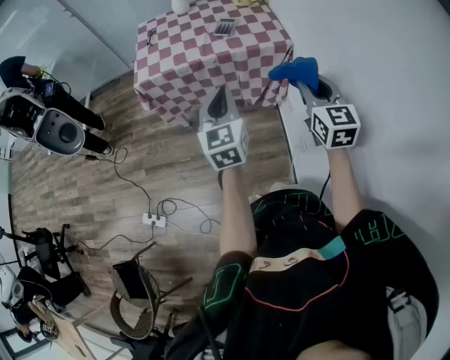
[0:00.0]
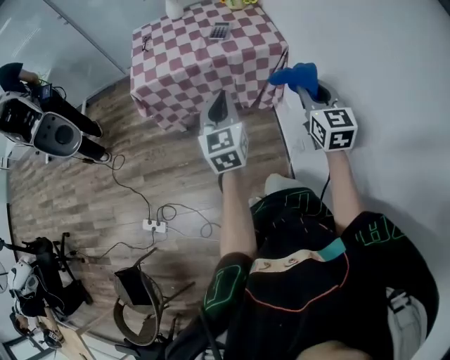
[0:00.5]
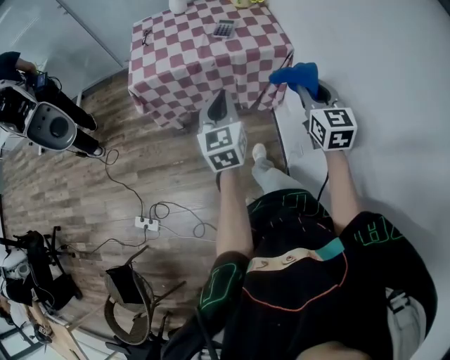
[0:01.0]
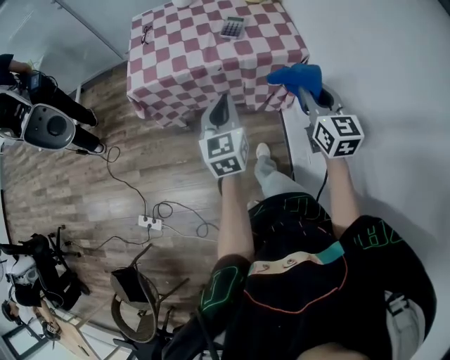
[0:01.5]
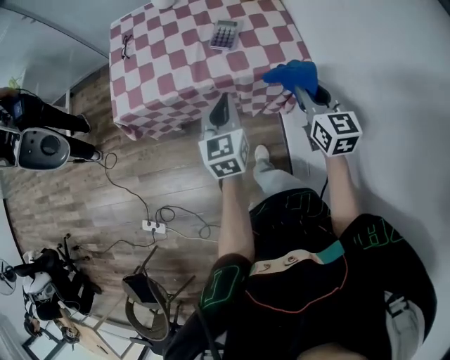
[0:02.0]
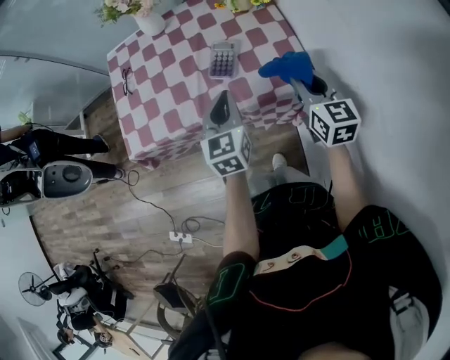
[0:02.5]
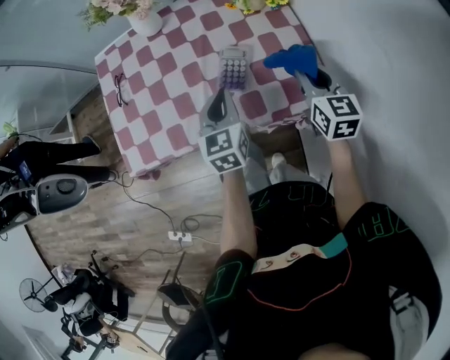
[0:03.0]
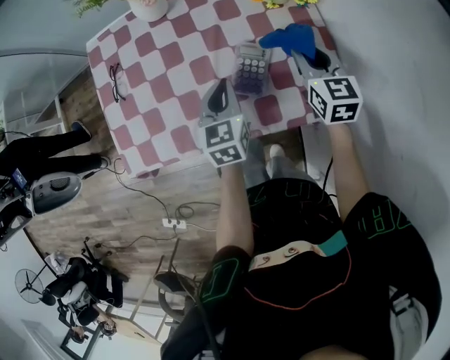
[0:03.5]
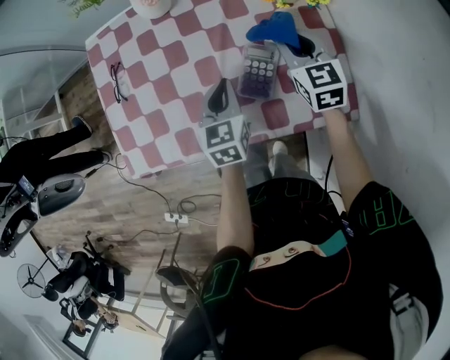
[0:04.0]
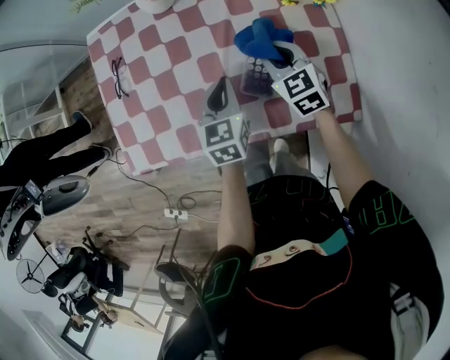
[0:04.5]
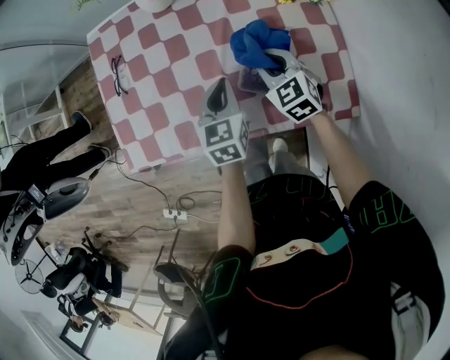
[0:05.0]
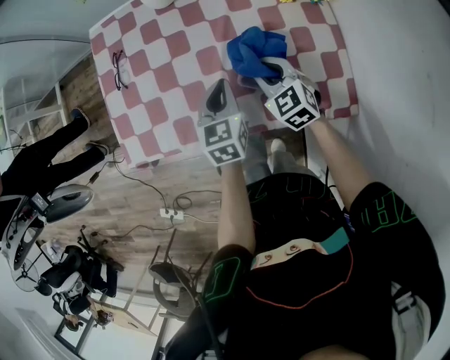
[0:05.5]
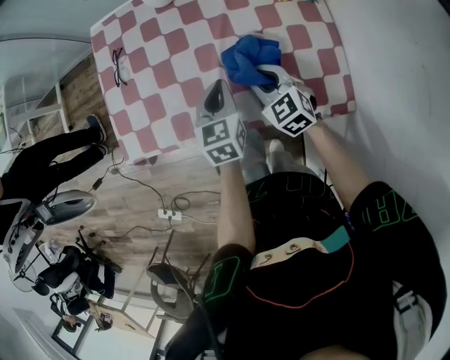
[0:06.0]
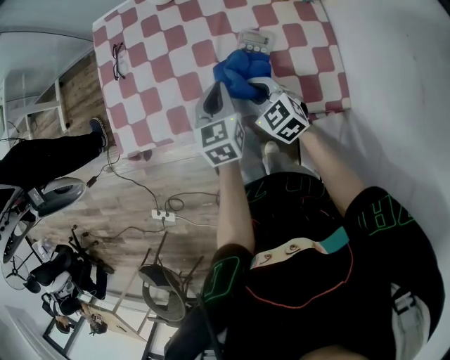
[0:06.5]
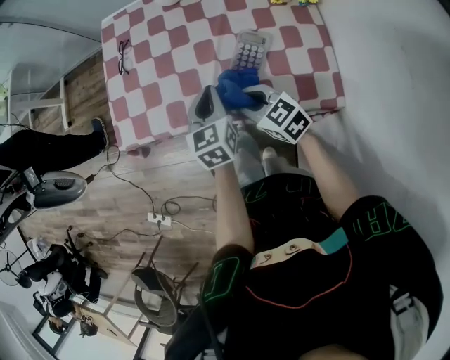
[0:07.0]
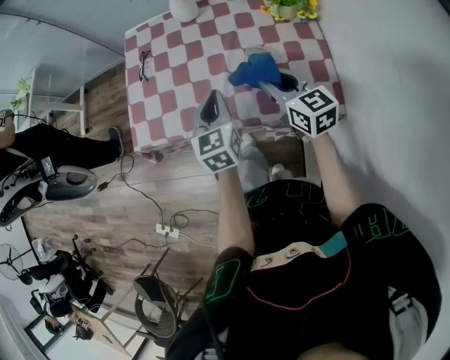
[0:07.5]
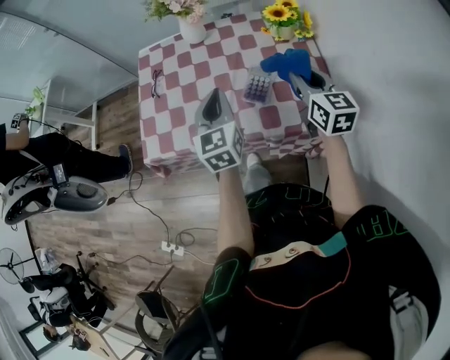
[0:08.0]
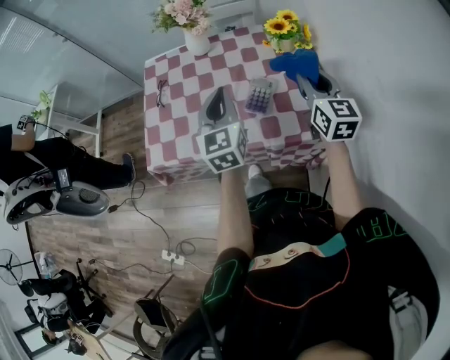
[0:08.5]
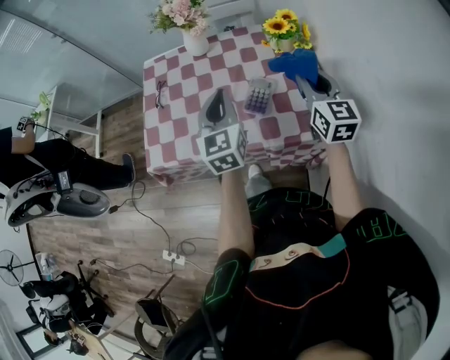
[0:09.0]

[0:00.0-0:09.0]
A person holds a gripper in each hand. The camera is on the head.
0:00.0 to 0:02.0: The two grippers go about 25 cm forward.
0:02.0 to 0:04.5: Both grippers move forward, approximately 30 cm. The right gripper swivels some 30 degrees.
0:04.5 to 0:07.0: The right gripper heads backward and to the left, covering roughly 20 cm, and rotates approximately 30 degrees, while the left gripper shifts about 10 cm backward and to the left.
0:07.0 to 0:09.0: The grippers both shift upward by approximately 15 cm. The right gripper rotates roughly 50 degrees. The left gripper swivels roughly 20 degrees.

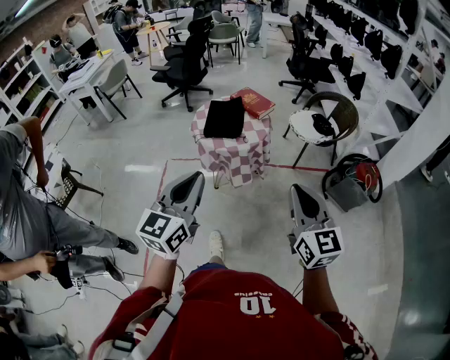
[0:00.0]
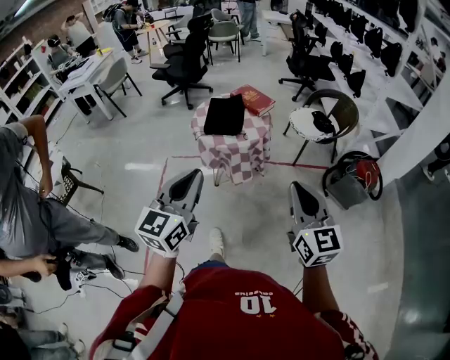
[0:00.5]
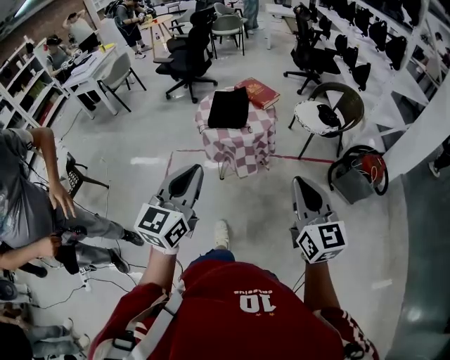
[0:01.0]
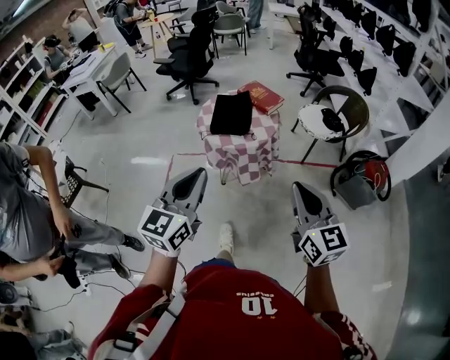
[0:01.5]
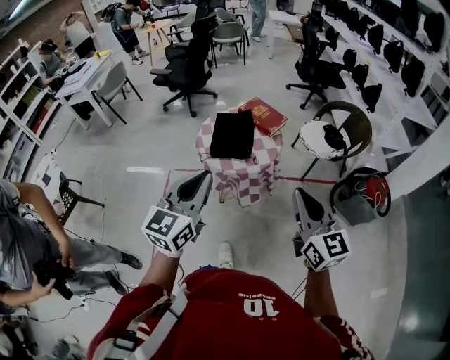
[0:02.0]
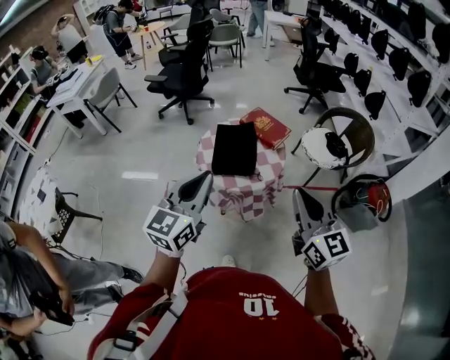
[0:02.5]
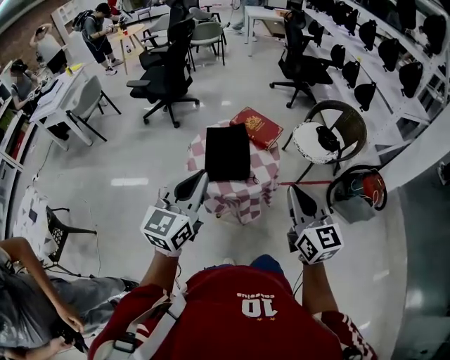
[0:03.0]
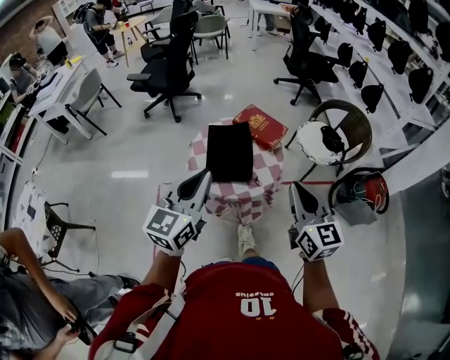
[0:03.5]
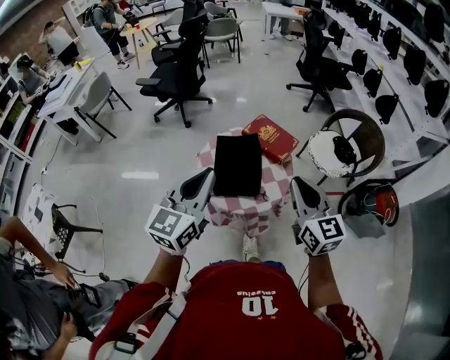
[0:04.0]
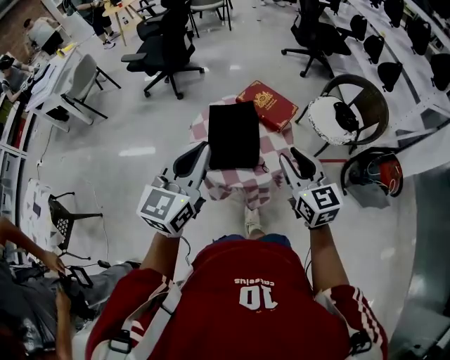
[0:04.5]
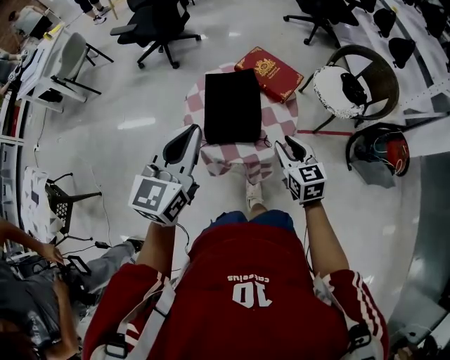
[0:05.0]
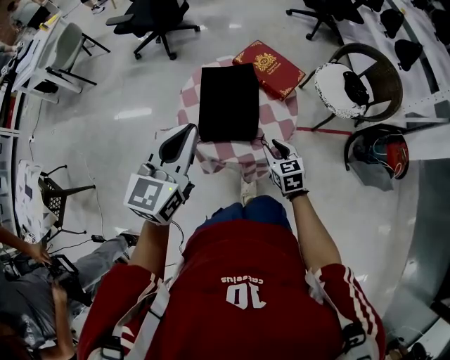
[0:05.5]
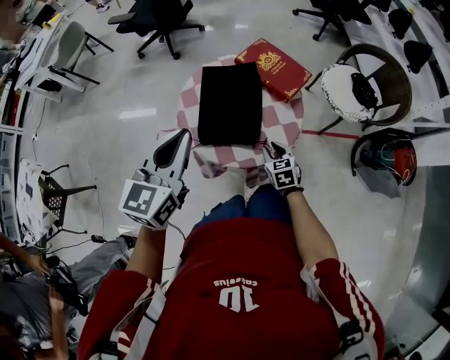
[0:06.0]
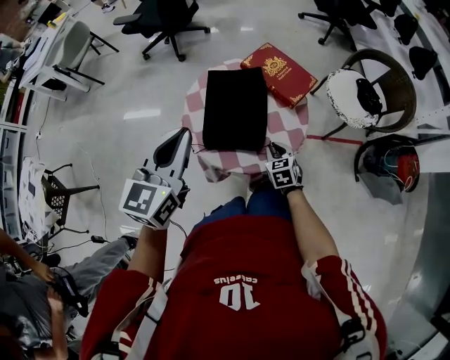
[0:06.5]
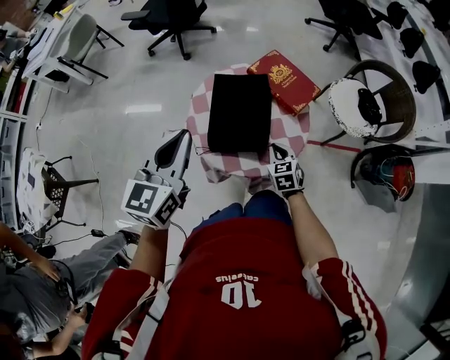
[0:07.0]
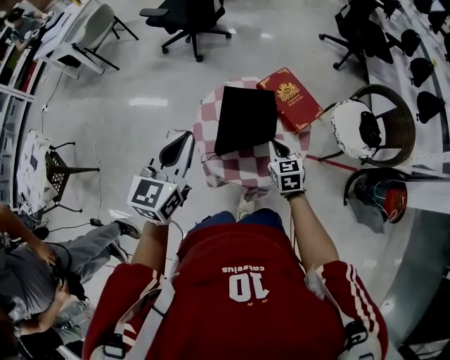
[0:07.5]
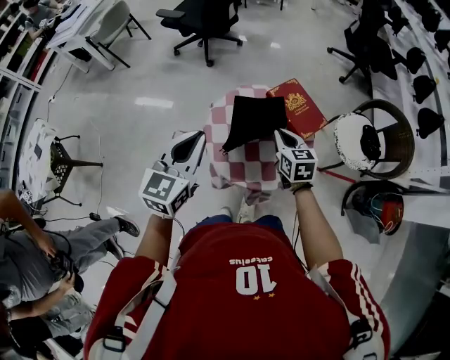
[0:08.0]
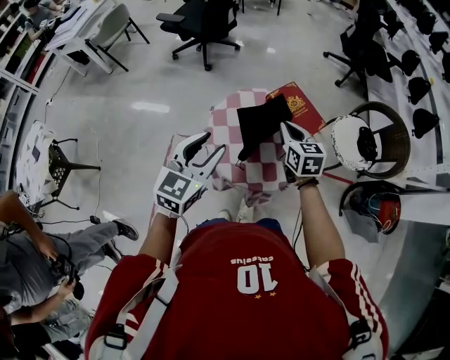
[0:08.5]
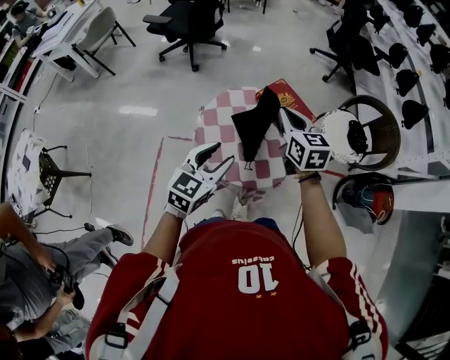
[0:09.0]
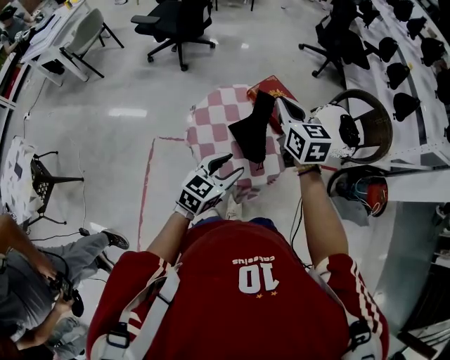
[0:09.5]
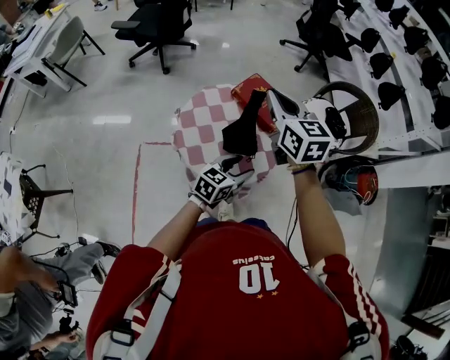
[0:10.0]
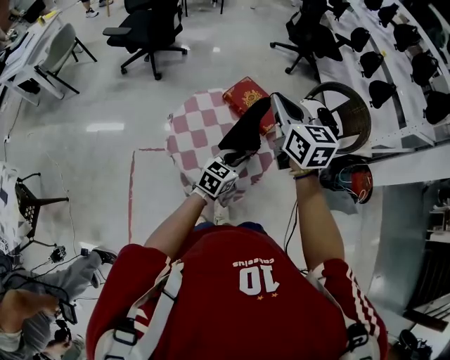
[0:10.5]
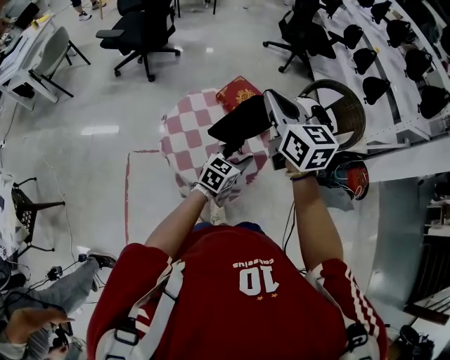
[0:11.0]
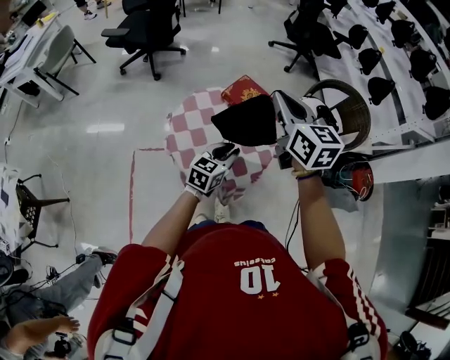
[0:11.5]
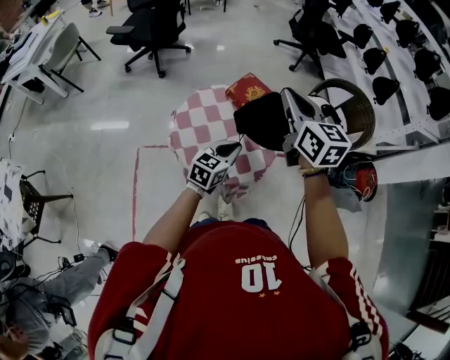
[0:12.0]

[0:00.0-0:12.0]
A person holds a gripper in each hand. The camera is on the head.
0:00.0 to 0:02.0: Both grippers move forward, approximately 15 cm.
0:02.0 to 0:04.0: The two grippers go some 25 cm forward.
0:04.0 to 0:06.0: The left gripper goes approximately 15 cm downward and forward, while the right gripper is displaced downward by some 40 cm, angles its fingers downward, by roughly 40 degrees, and opens up.
0:06.0 to 0:08.0: The left gripper heads upward, covering some 5 cm, while the right gripper shifts about 25 cm upward and forward, and closes up.
0:08.0 to 0:10.0: The right gripper shifts approximately 20 cm upward, while the left gripper goes approximately 25 cm downward and to the right, rotates roughly 40 degrees, and opens up.
0:10.0 to 0:12.0: The right gripper moves to the right, approximately 5 cm. Meanwhile the left gripper changes place by roughly 5 cm, and closes up.

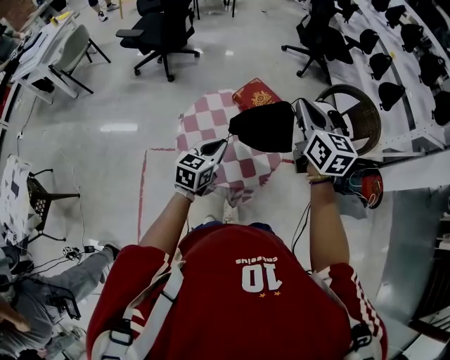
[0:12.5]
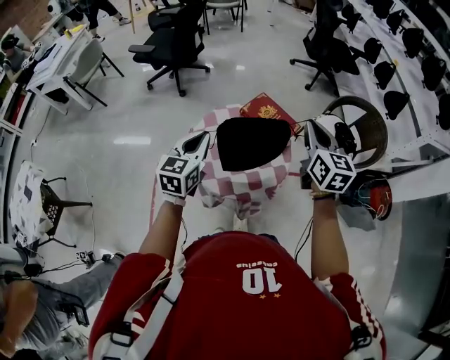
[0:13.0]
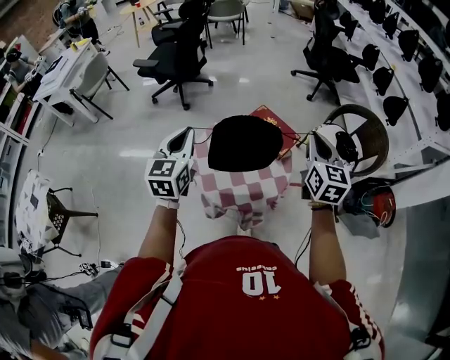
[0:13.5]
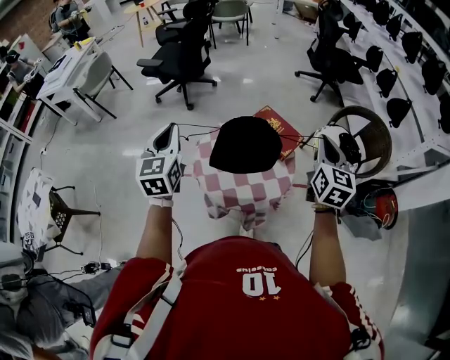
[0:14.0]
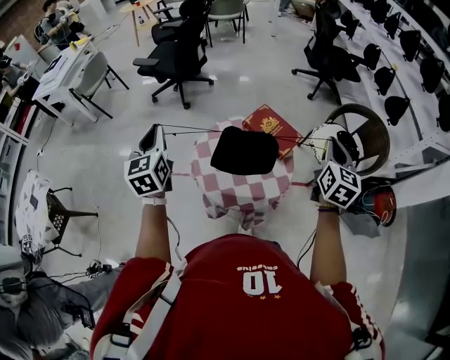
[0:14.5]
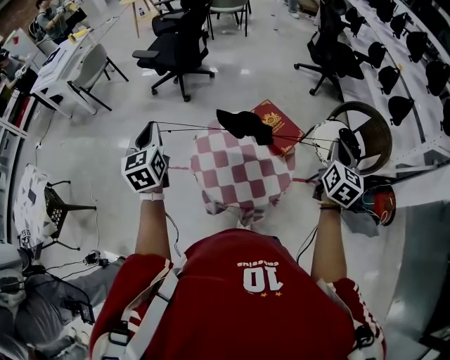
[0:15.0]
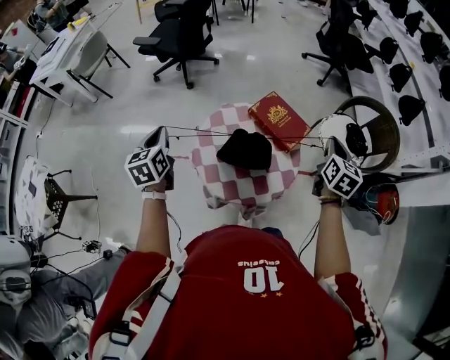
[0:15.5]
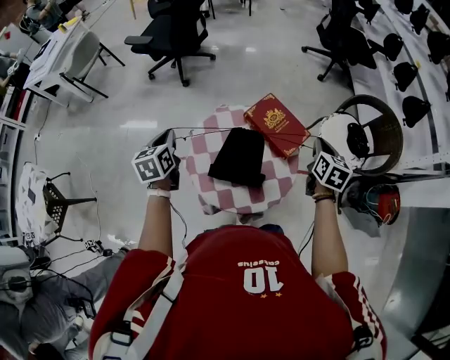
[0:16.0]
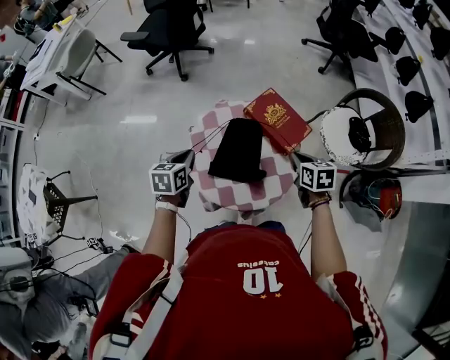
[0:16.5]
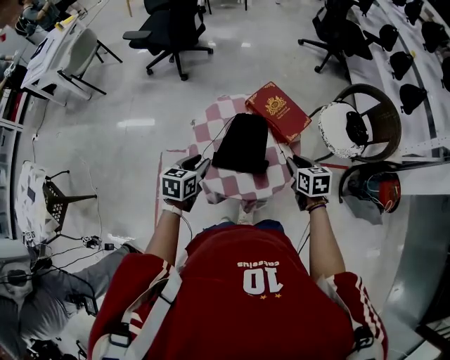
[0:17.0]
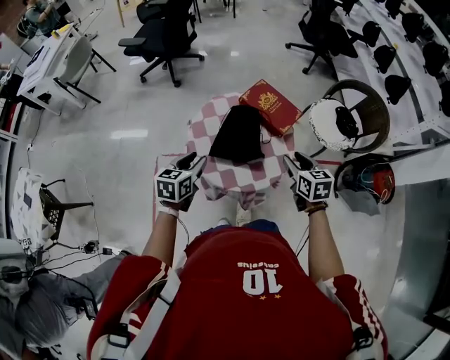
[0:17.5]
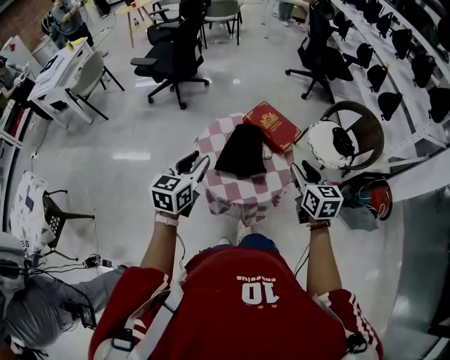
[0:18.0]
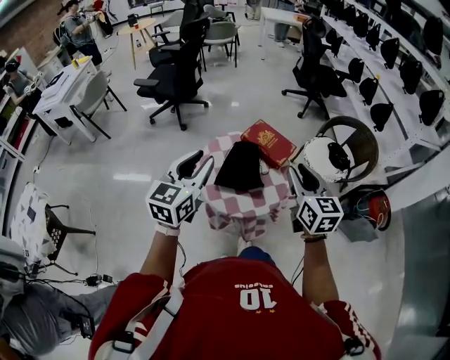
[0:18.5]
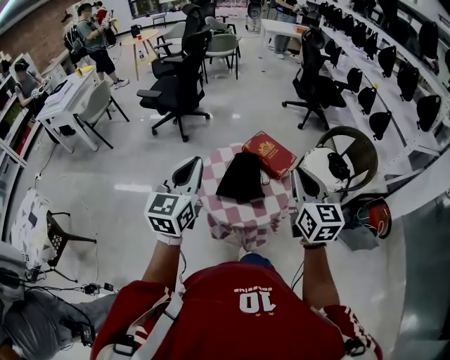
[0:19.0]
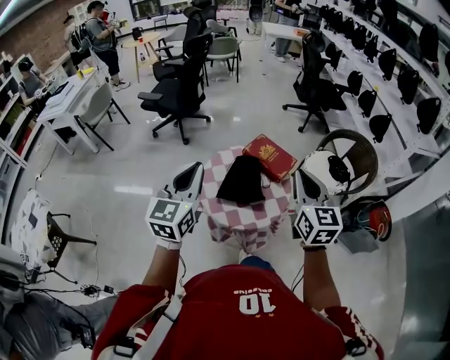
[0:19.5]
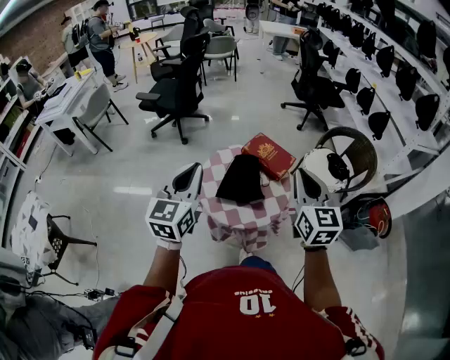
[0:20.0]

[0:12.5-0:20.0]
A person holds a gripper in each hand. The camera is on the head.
0:12.5 to 0:14.5: The right gripper is displaced to the right by about 10 cm, and rotates roughly 20 degrees. Meanwhile the left gripper goes some 30 cm to the left and upward, and changes its angle by roughly 40 degrees.
0:14.5 to 0:16.5: Both grippers move downward, some 25 cm. The left gripper points its fingers some 30 degrees further downward, while the right gripper tilts its fingers some 30 degrees downward.
0:16.5 to 0:18.0: The right gripper travels backward and upward by roughly 20 cm, swivels approximately 30 degrees, and opens up. Meanwhile the left gripper travels upward and backward by some 20 cm, swivels about 30 degrees, and opens its fingers.
0:18.0 to 0:20.0: The two grippers go about 15 cm upward. The left gripper closes; the right gripper changes its angle by some 20 degrees, and closes.
